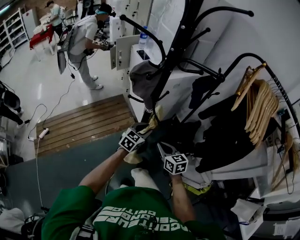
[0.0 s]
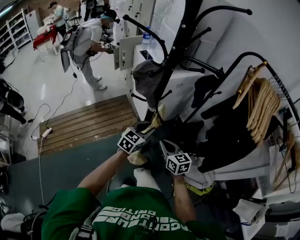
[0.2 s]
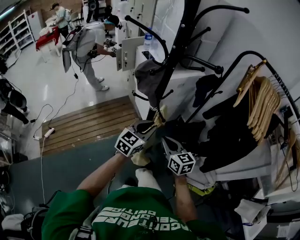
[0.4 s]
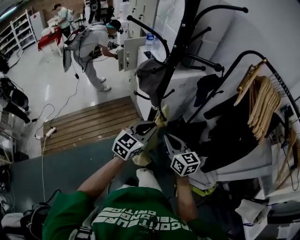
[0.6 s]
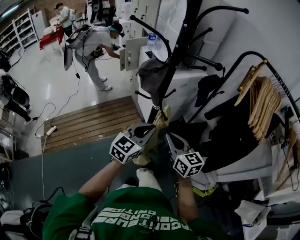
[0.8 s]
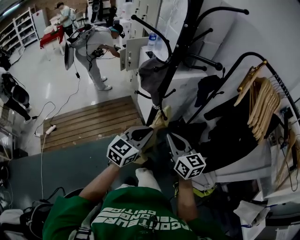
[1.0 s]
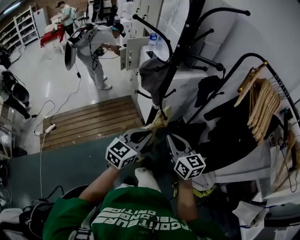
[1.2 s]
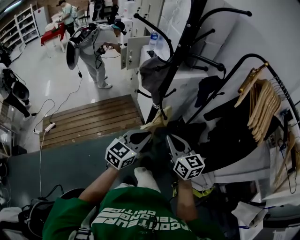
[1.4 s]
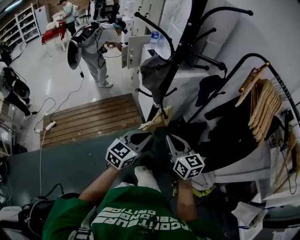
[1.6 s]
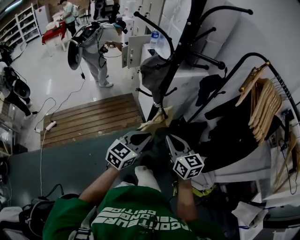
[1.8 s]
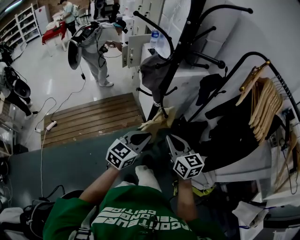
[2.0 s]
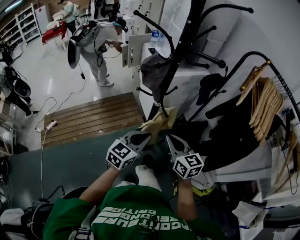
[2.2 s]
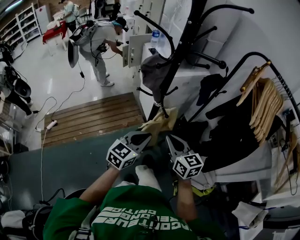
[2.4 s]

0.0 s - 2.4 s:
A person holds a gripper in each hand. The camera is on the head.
0.0 s - 1.2 s: The left gripper moves upward and backward, approximately 20 cm, and closes up. The right gripper heads upward, covering some 15 cm.
1.2 s - 2.4 s: The grippers stay close to where they were, moving slightly.

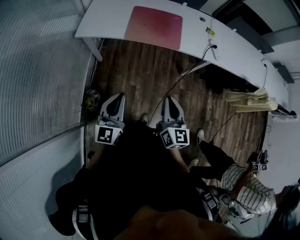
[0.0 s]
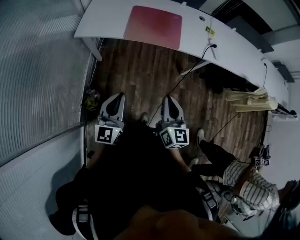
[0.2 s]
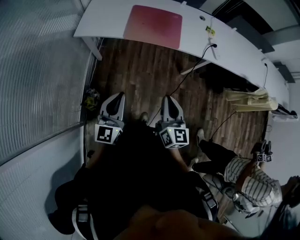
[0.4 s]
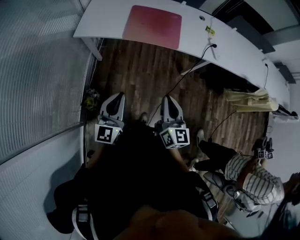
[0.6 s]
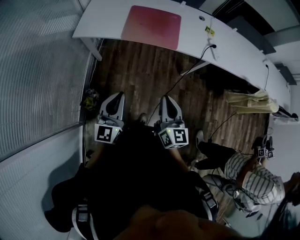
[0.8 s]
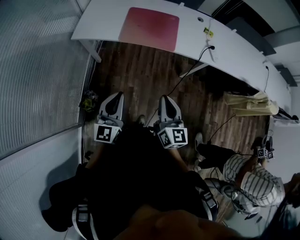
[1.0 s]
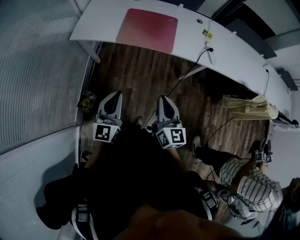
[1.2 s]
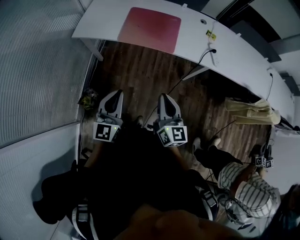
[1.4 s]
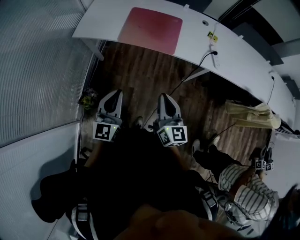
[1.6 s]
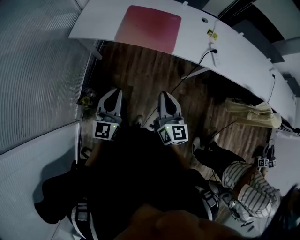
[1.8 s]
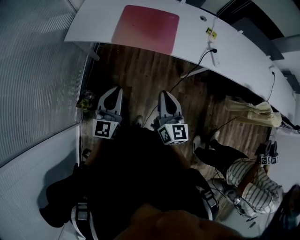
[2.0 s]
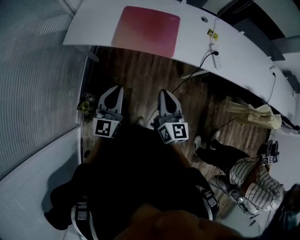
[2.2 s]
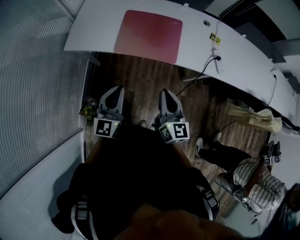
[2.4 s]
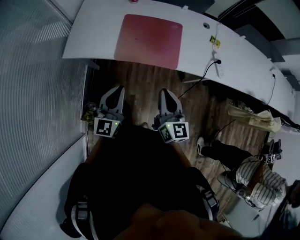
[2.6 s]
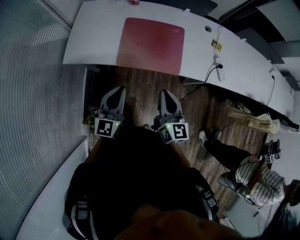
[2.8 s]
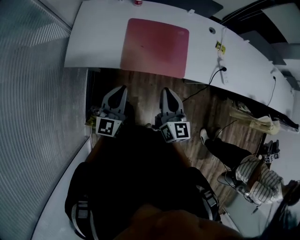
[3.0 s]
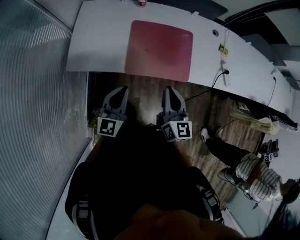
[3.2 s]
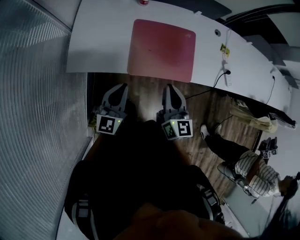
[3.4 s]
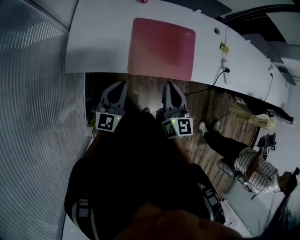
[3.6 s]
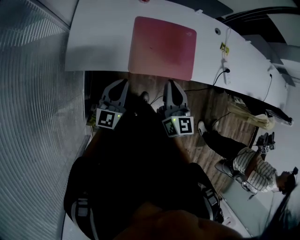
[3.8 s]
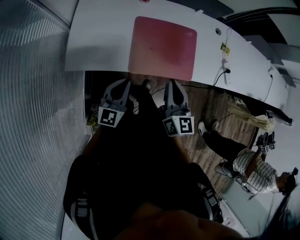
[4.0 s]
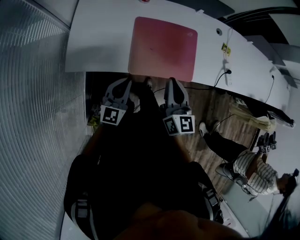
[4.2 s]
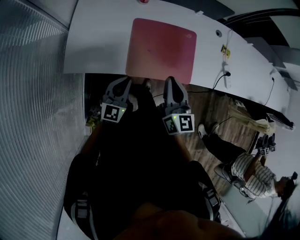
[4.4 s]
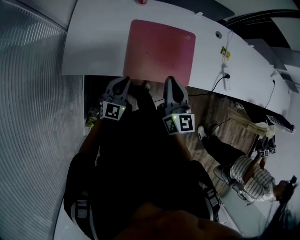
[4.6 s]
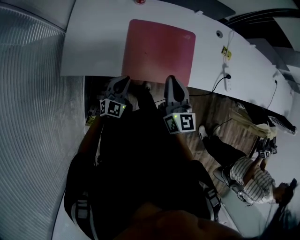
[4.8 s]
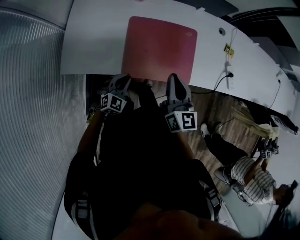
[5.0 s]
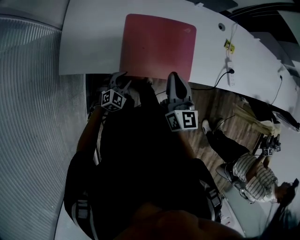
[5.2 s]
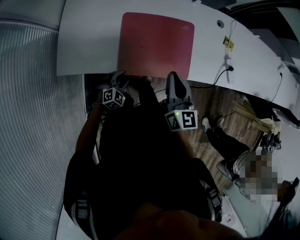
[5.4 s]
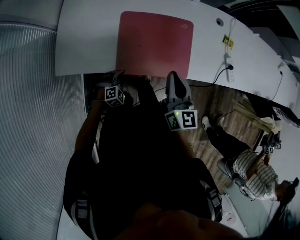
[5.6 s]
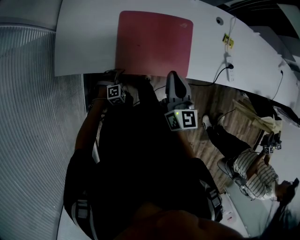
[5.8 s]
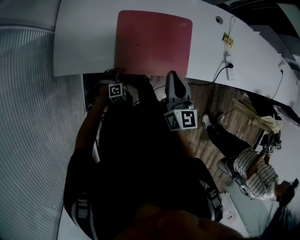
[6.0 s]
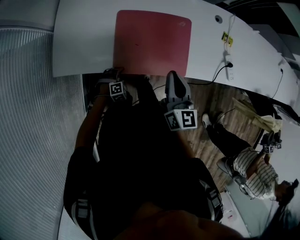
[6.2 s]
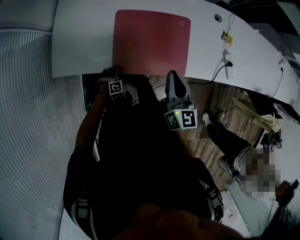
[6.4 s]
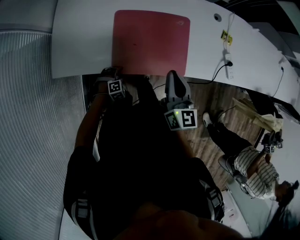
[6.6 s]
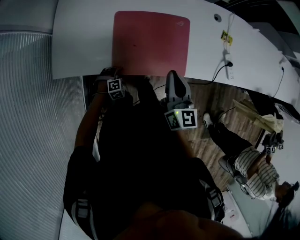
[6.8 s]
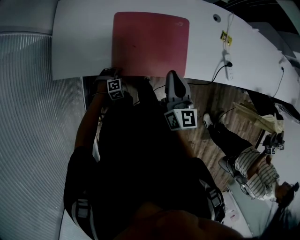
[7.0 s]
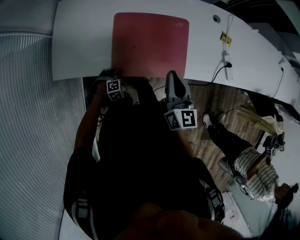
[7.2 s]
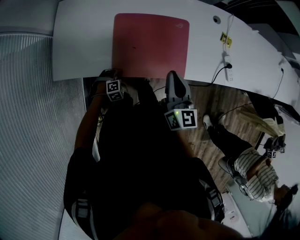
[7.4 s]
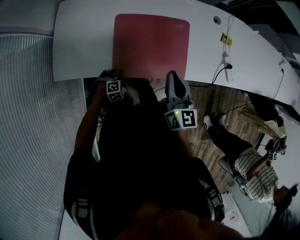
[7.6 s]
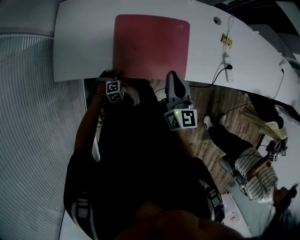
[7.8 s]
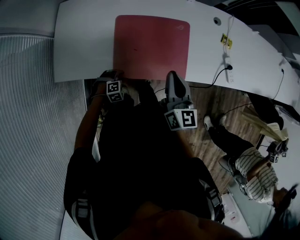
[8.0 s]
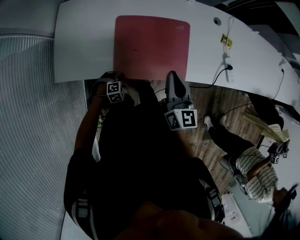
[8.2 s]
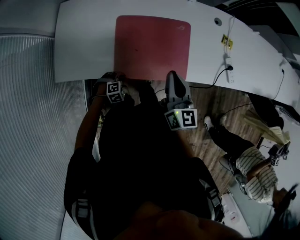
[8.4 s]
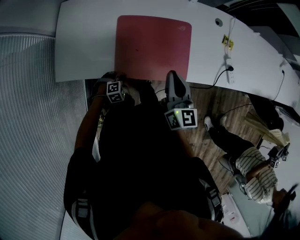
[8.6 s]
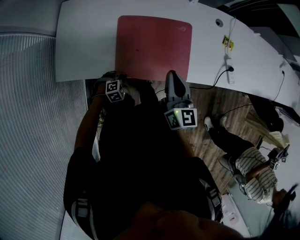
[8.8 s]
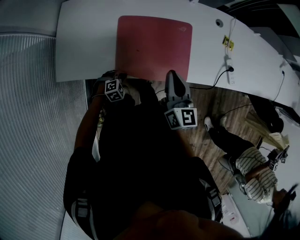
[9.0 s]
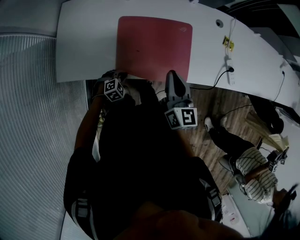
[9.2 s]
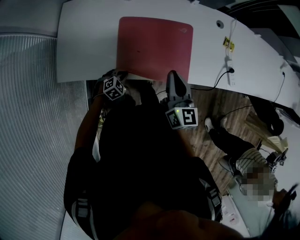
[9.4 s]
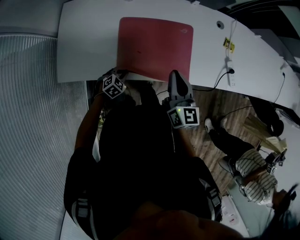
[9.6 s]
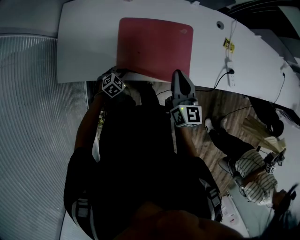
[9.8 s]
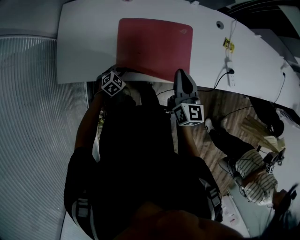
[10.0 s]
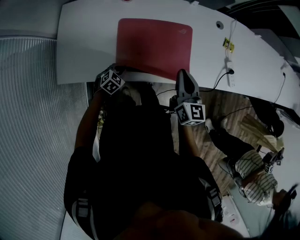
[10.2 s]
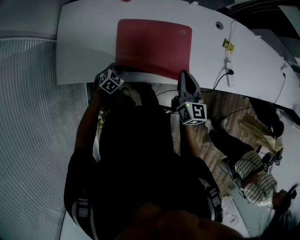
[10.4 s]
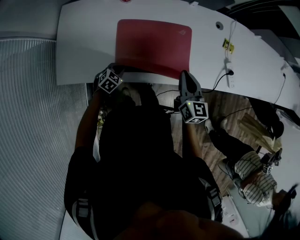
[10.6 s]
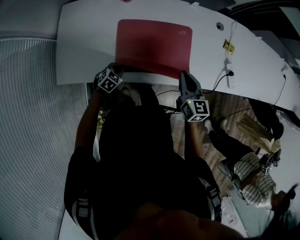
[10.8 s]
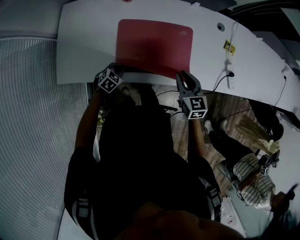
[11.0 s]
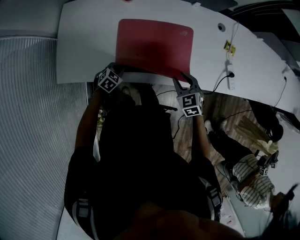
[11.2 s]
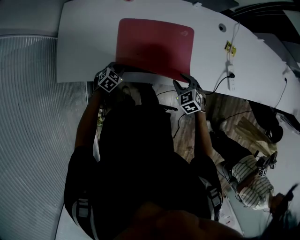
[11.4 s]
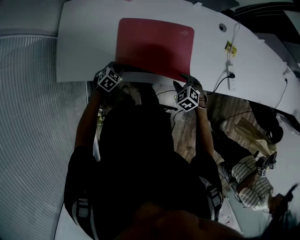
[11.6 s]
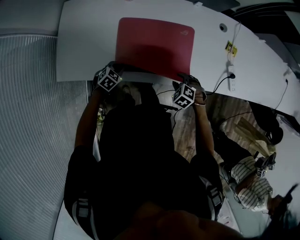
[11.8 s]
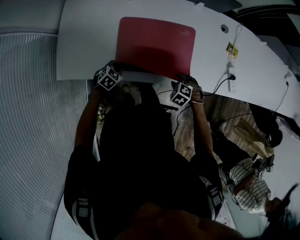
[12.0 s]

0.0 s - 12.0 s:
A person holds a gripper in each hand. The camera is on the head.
0.0 s - 1.6 s: Both grippers move to the right and forward, roughly 15 cm.
1.6 s - 3.0 s: The left gripper moves forward, approximately 35 cm. The right gripper moves forward and to the left, about 35 cm.
3.0 s - 4.4 s: The right gripper goes roughly 15 cm forward and to the left; the left gripper heads forward, downward and to the left, covering about 15 cm.
4.4 s - 6.0 s: The right gripper moves to the right, forward and downward, about 10 cm. The left gripper goes about 30 cm downward, tips its fingers downward by some 50 degrees, and opens up.
6.0 s - 7.6 s: The grippers move only a little.
7.6 s - 9.0 s: The left gripper closes.
9.0 s - 10.4 s: The left gripper goes approximately 5 cm forward, and rotates about 20 degrees. The right gripper moves about 5 cm.
10.4 s - 12.0 s: The right gripper is displaced downward by roughly 25 cm, tips its fingers downward by some 60 degrees, and opens up.

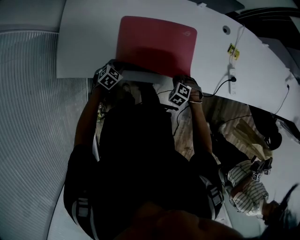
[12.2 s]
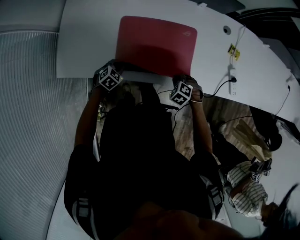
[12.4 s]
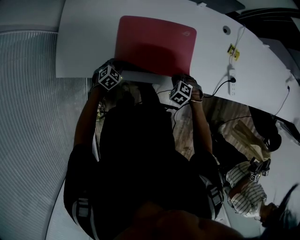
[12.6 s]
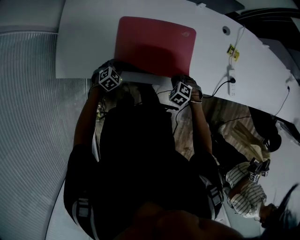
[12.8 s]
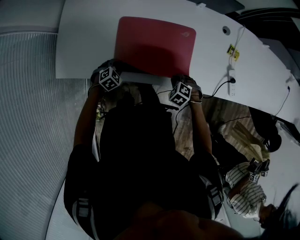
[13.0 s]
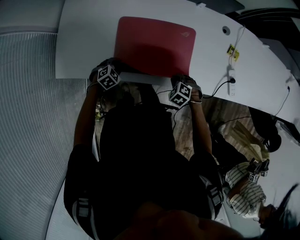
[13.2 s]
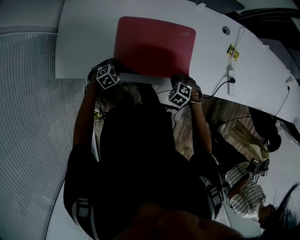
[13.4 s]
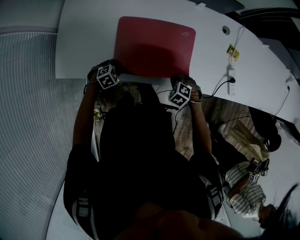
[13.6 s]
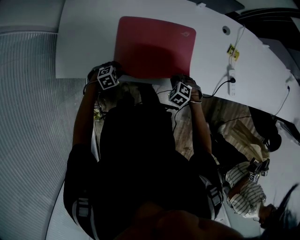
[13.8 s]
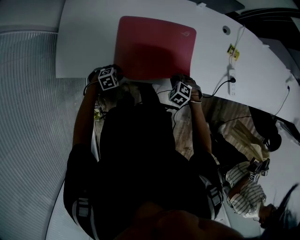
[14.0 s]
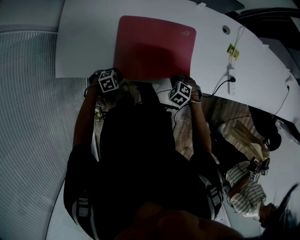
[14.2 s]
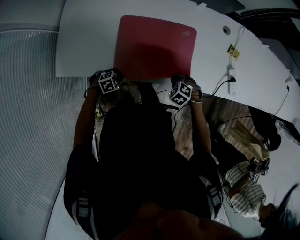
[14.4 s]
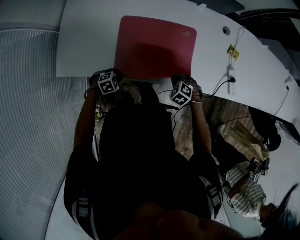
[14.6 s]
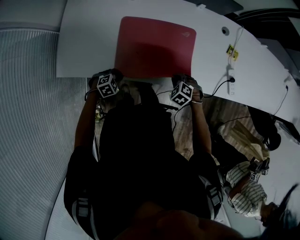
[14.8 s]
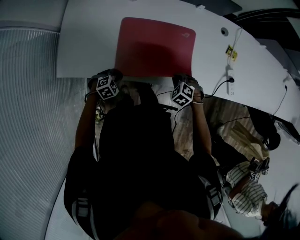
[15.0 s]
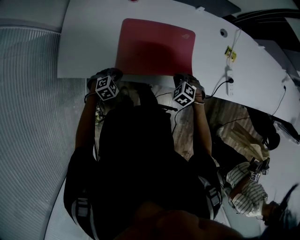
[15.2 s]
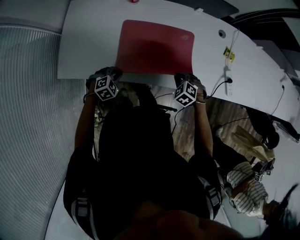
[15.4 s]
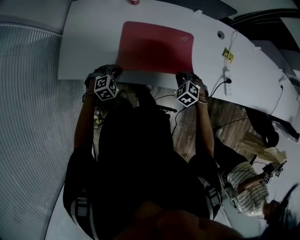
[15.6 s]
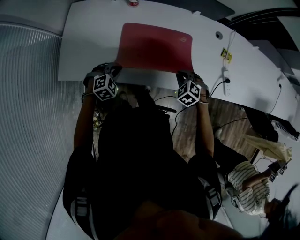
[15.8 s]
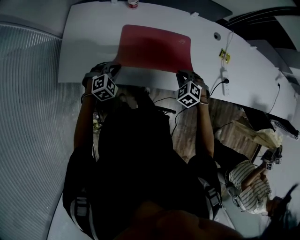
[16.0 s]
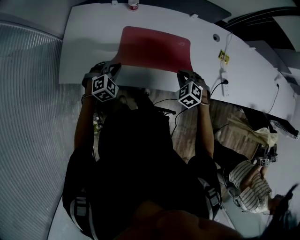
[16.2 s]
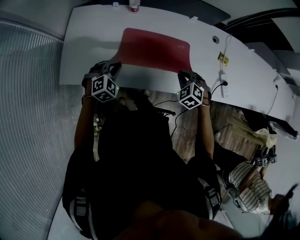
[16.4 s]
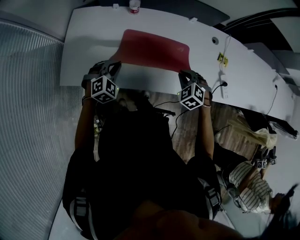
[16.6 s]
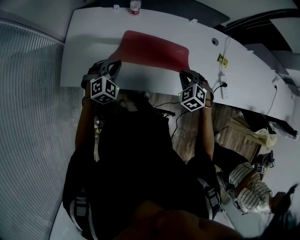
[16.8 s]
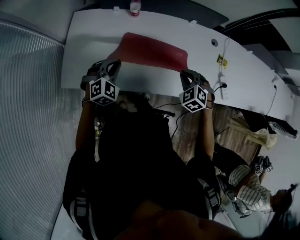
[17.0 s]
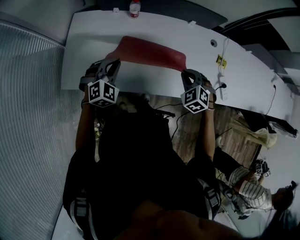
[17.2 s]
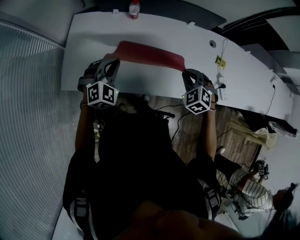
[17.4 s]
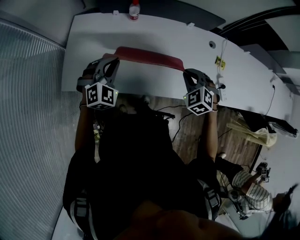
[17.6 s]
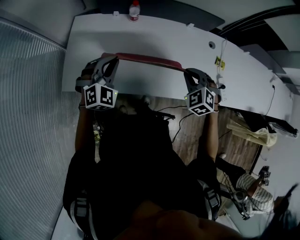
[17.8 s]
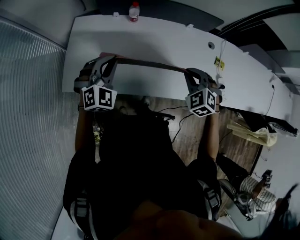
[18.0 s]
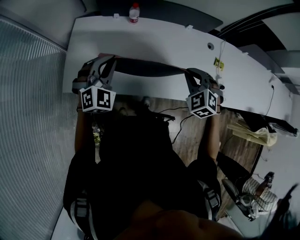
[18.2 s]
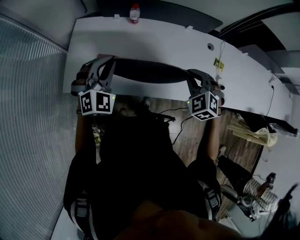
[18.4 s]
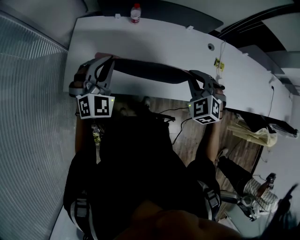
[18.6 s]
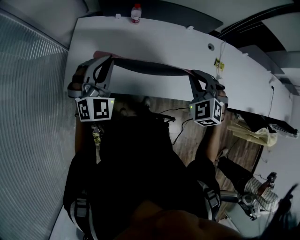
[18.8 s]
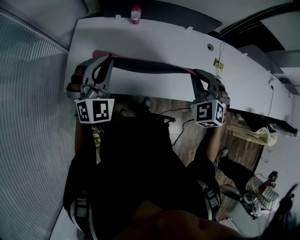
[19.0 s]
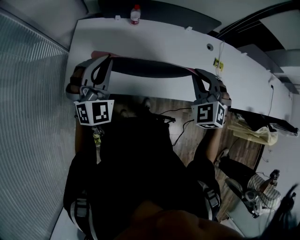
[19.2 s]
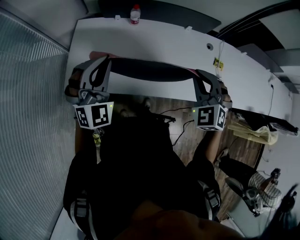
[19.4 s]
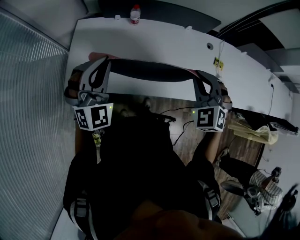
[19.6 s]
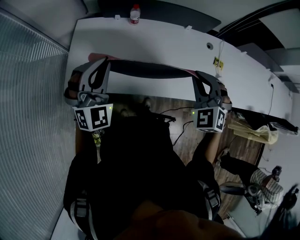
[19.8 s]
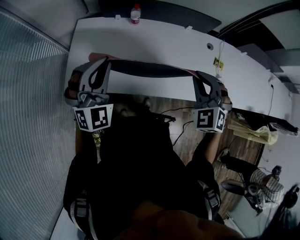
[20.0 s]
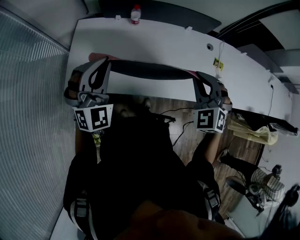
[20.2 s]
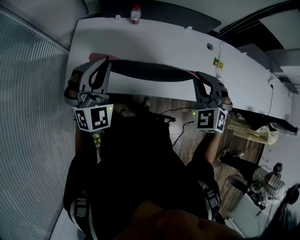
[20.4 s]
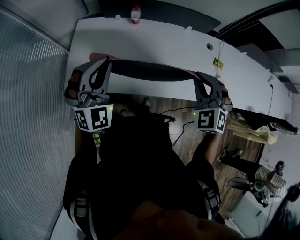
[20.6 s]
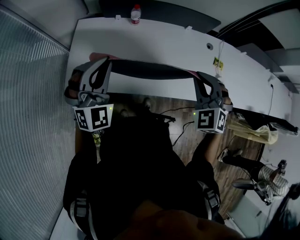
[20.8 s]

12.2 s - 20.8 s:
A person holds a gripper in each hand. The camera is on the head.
12.2 s - 13.6 s: The left gripper rotates roughly 20 degrees.
15.0 s - 16.6 s: The left gripper travels upward and forward by approximately 20 cm, and changes its angle by about 30 degrees, while the right gripper goes about 15 cm upward.
16.6 s - 18.0 s: The grippers both shift upward by about 15 cm. The left gripper changes its angle by approximately 20 degrees.
18.0 s - 19.4 s: The grippers both shift upward by some 10 cm.
19.4 s - 20.8 s: The grippers make only small movements.

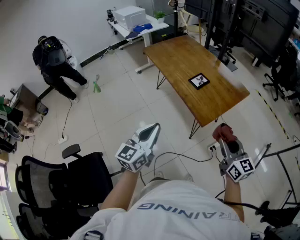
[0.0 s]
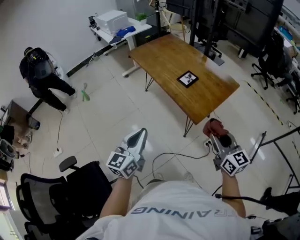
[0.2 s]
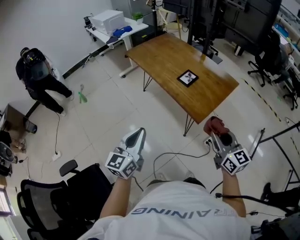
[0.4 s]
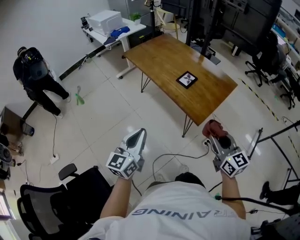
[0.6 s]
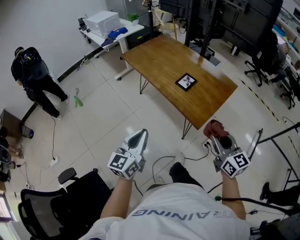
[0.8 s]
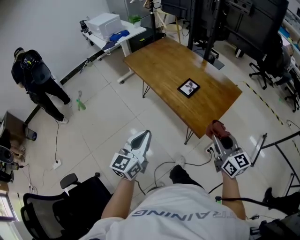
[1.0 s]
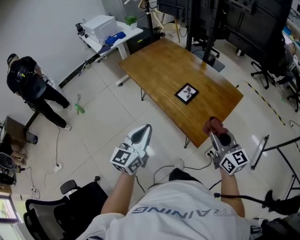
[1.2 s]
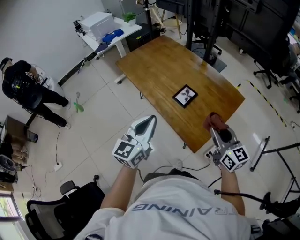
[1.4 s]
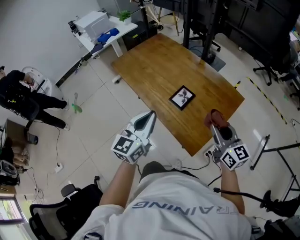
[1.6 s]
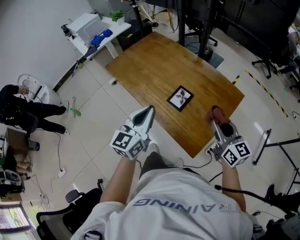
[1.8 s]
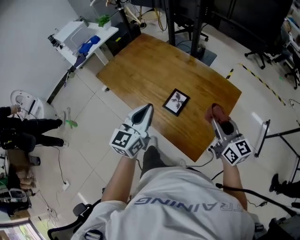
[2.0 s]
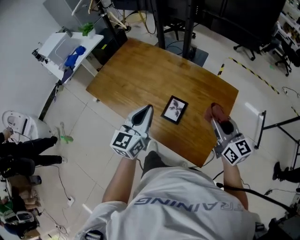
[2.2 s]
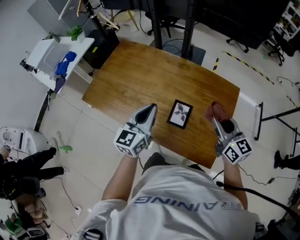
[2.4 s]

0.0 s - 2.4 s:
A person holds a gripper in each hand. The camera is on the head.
0.0 s - 1.2 s: The grippers both shift forward by about 20 cm.
1.2 s - 2.4 s: Both grippers move forward, roughly 30 cm. The left gripper rotates approximately 20 degrees. Meanwhile the right gripper rotates about 20 degrees.
